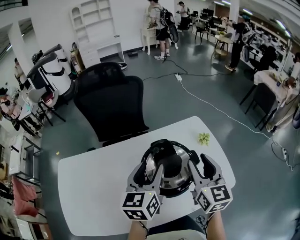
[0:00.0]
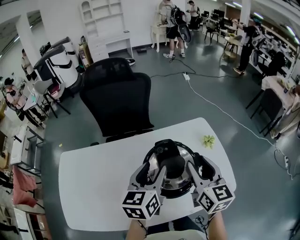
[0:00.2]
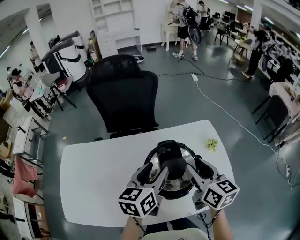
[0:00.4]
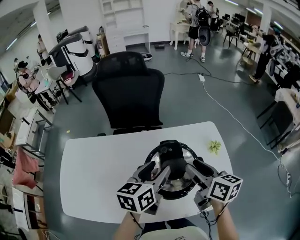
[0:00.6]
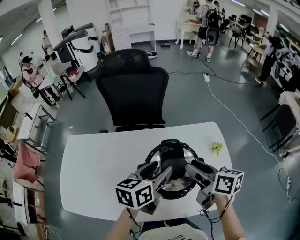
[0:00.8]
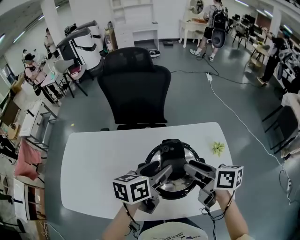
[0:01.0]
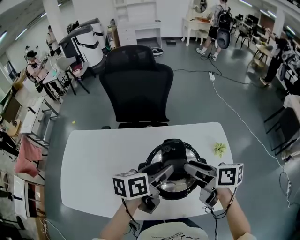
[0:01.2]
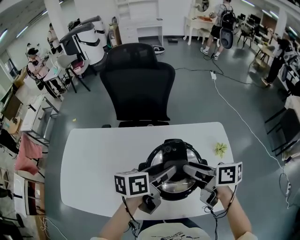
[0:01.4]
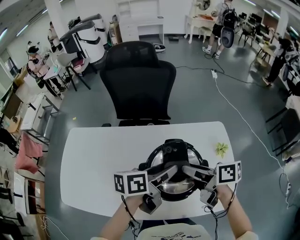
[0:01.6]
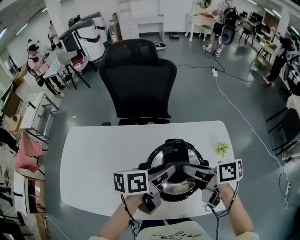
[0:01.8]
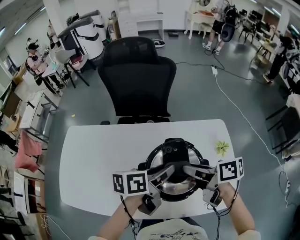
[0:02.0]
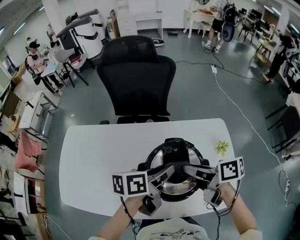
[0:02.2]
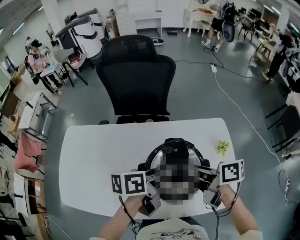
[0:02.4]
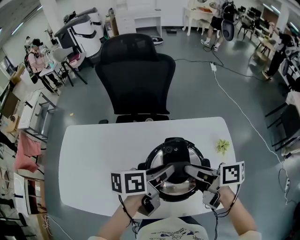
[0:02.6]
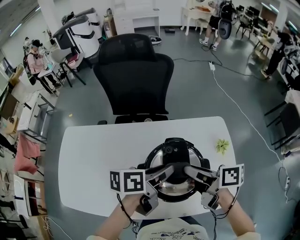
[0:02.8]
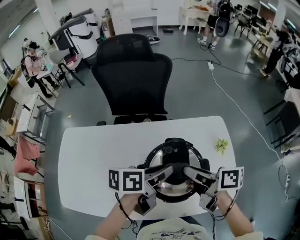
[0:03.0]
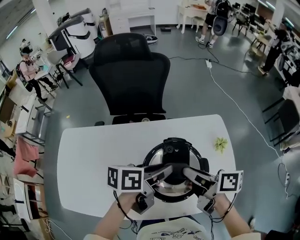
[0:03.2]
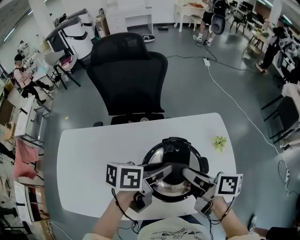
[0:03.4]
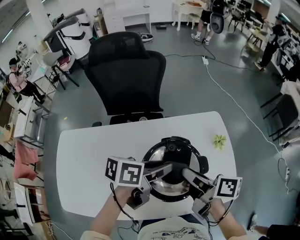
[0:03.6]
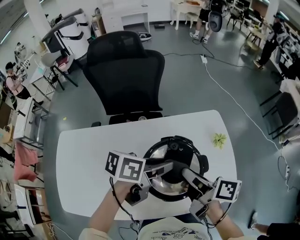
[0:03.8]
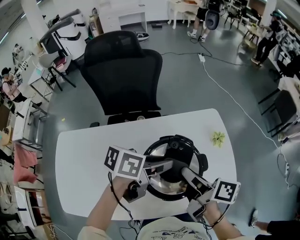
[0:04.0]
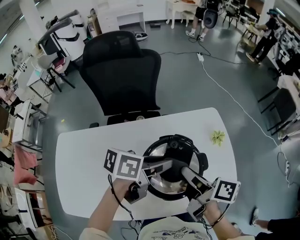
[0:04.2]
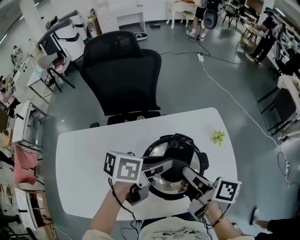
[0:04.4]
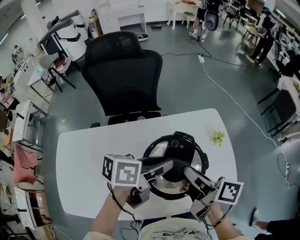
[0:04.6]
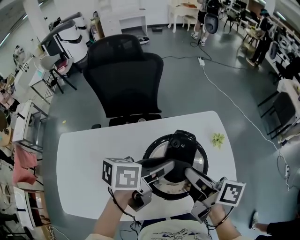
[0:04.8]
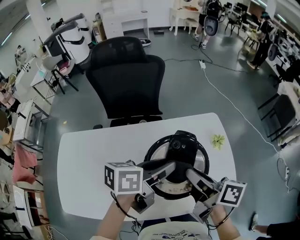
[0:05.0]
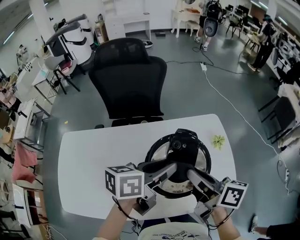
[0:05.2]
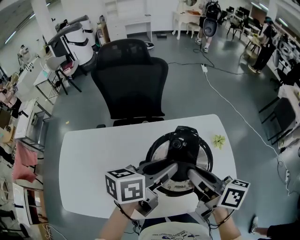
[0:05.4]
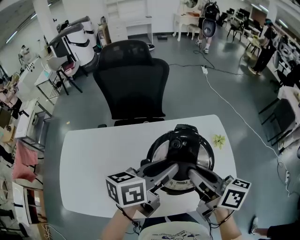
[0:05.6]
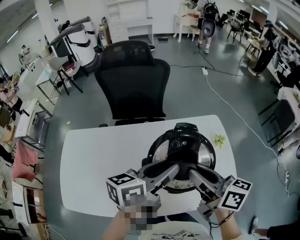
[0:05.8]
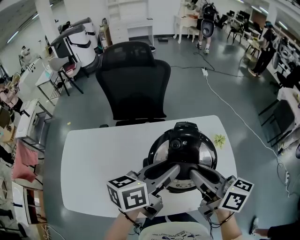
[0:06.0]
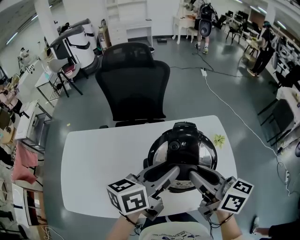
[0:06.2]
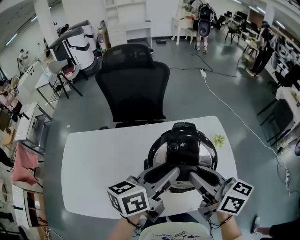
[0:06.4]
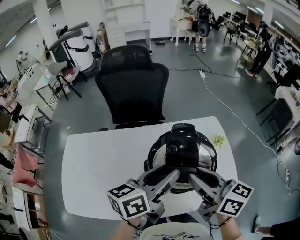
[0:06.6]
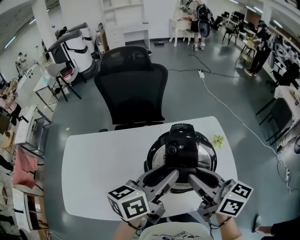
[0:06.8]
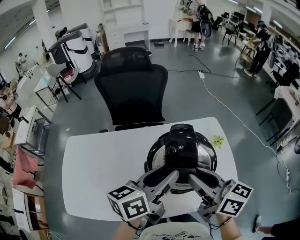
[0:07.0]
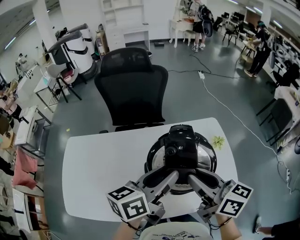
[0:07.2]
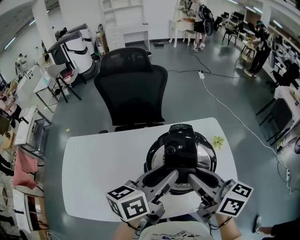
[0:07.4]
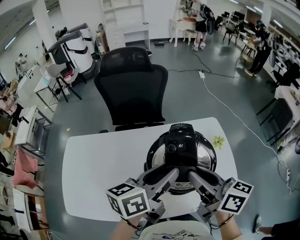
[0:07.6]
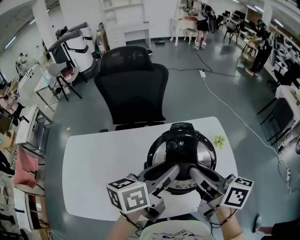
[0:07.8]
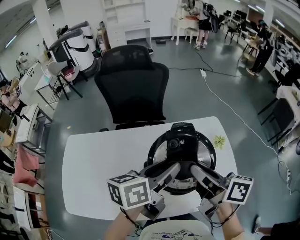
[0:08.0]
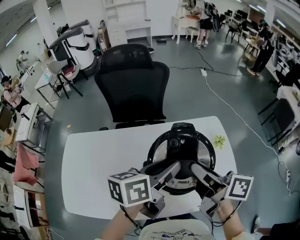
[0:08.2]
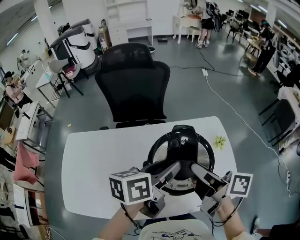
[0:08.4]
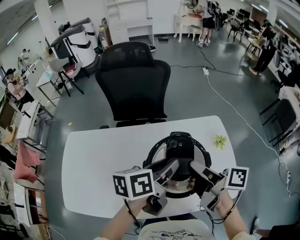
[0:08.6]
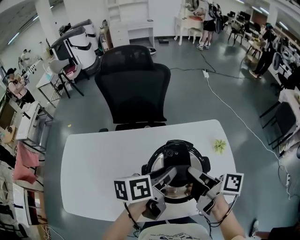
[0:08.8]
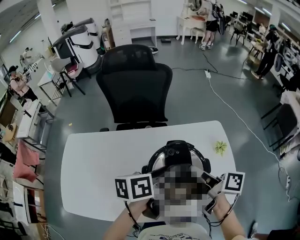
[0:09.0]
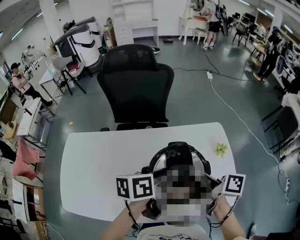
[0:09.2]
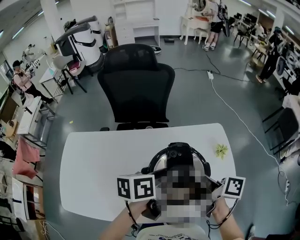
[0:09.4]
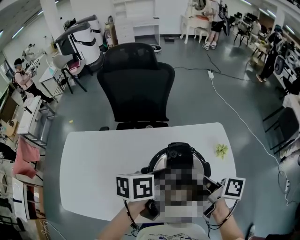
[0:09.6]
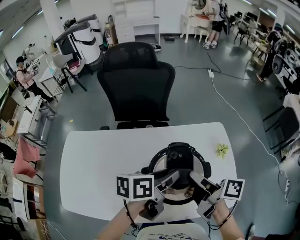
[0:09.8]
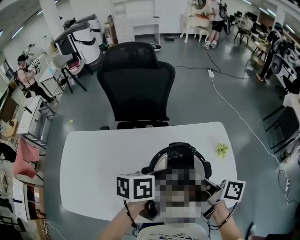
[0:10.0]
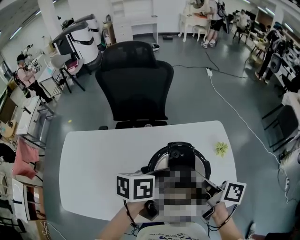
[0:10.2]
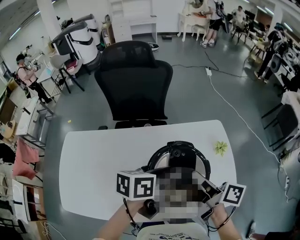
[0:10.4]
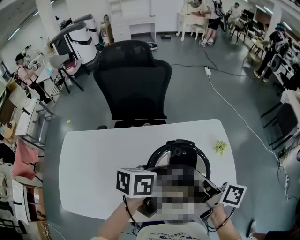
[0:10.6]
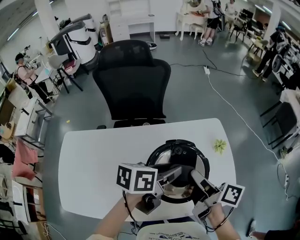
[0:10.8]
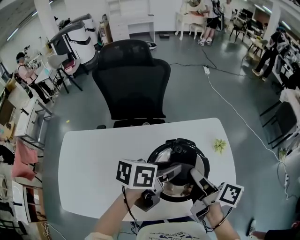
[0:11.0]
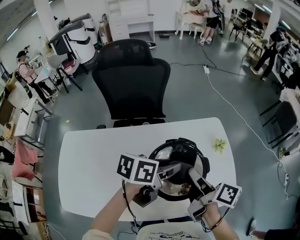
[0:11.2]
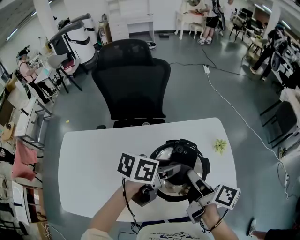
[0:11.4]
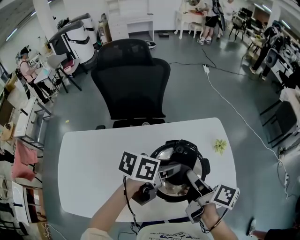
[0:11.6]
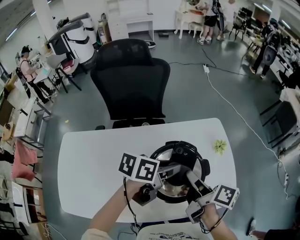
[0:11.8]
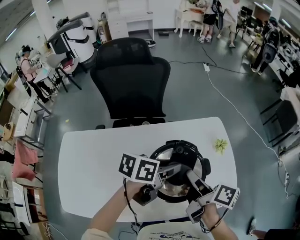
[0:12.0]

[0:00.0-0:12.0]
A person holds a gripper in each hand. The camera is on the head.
0:00.0 to 0:01.6: The left gripper heads downward, covering approximately 5 cm, and changes its angle by some 40 degrees, while the right gripper travels to the left, forward and downward by approximately 10 cm, and swivels some 80 degrees.
0:01.6 to 0:03.0: The left gripper closes.
0:03.0 to 0:04.4: The right gripper swivels approximately 20 degrees.
0:04.4 to 0:06.0: The left gripper is displaced backward and upward by about 15 cm, and swivels about 30 degrees, while the right gripper moves upward and backward, roughly 15 cm, and turns by about 40 degrees.
0:06.0 to 0:07.6: There are only small adjustments of the grippers.
0:07.6 to 0:09.0: The left gripper moves downward and forward, some 10 cm. The right gripper is displaced forward and downward by roughly 10 cm, and turns by roughly 30 degrees.
0:09.0 to 0:10.4: The grippers move only a little.
0:10.4 to 0:12.0: The grippers stay close to where they were, moving slightly.

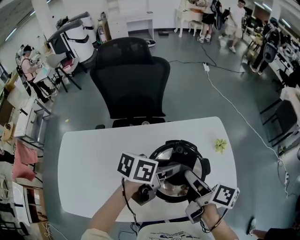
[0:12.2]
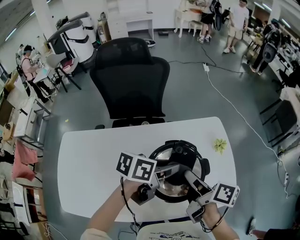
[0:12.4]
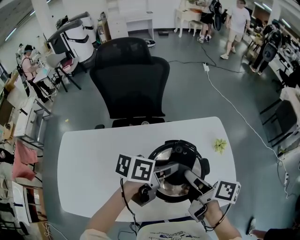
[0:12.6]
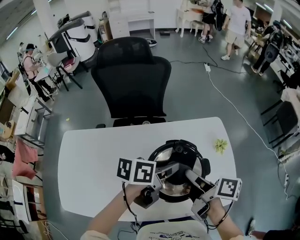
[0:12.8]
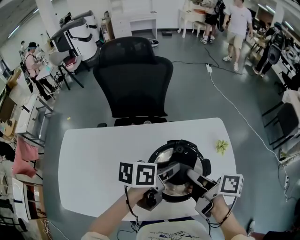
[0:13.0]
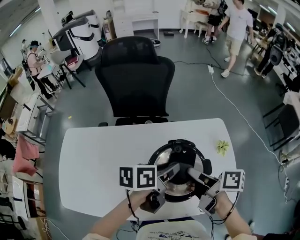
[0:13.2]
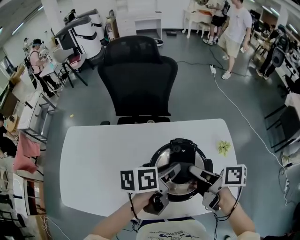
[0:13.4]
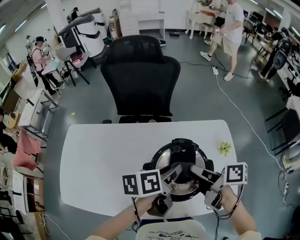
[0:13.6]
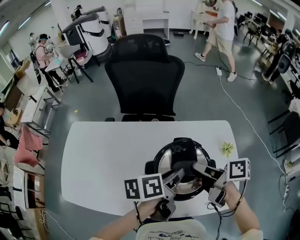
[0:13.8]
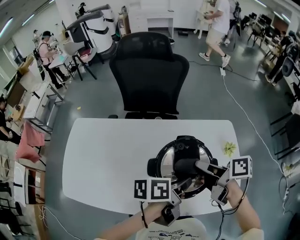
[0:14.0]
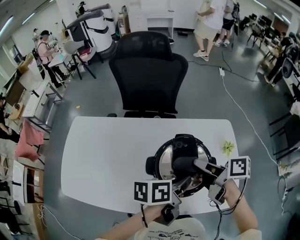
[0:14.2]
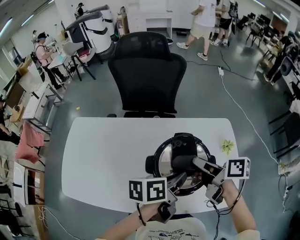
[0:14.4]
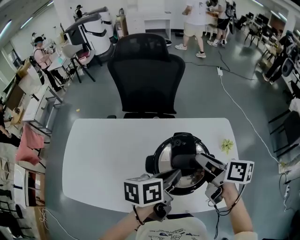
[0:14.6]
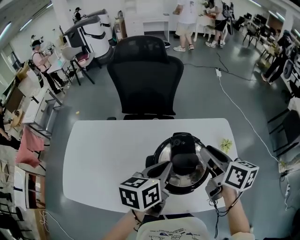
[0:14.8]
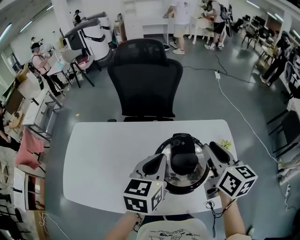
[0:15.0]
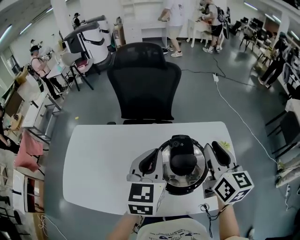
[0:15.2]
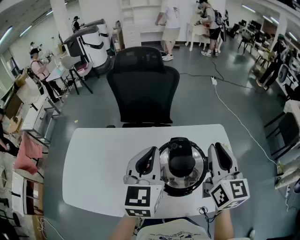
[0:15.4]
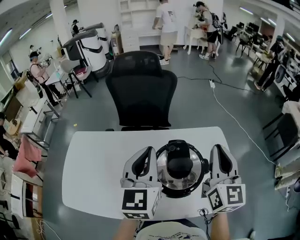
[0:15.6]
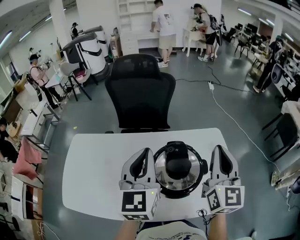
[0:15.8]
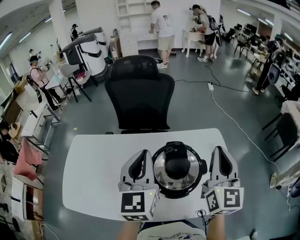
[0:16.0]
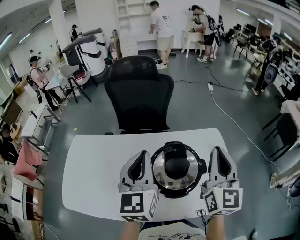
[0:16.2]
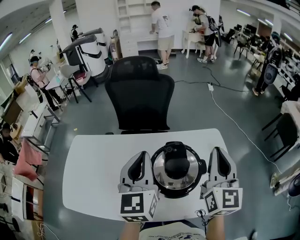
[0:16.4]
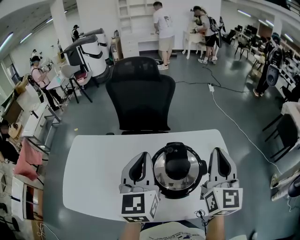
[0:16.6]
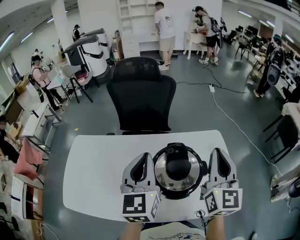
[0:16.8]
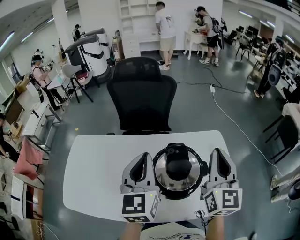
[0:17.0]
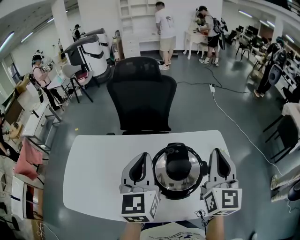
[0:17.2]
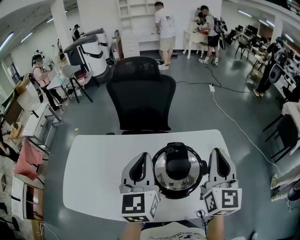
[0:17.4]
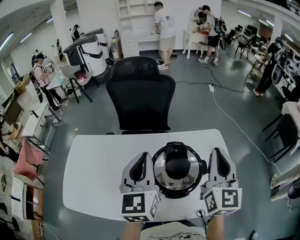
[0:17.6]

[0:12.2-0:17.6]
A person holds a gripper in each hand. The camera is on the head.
0:12.2 to 0:13.6: The left gripper rotates about 30 degrees, while the right gripper changes its angle by approximately 30 degrees.
0:13.6 to 0:15.0: The left gripper moves upward and to the left, roughly 10 cm, swivels approximately 50 degrees, and closes its fingers. Meanwhile the right gripper shifts roughly 10 cm upward, and swivels roughly 50 degrees.
0:15.0 to 0:16.2: The right gripper heads upward and backward, covering about 10 cm, swivels some 40 degrees, and closes, while the left gripper shifts some 10 cm upward, and changes its angle by some 30 degrees.
0:16.2 to 0:17.6: Neither gripper changes place.

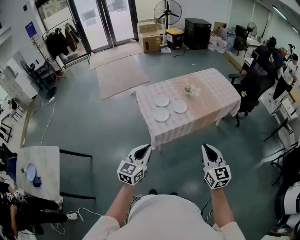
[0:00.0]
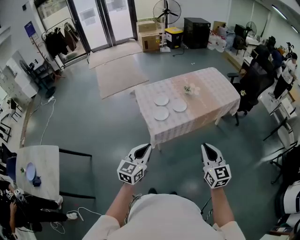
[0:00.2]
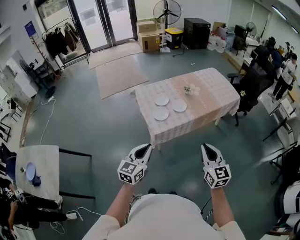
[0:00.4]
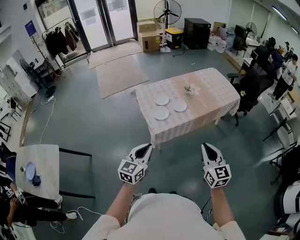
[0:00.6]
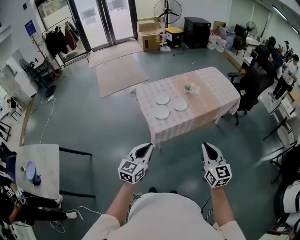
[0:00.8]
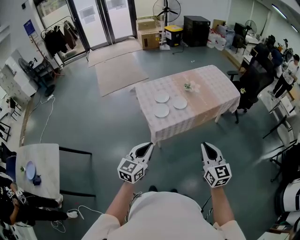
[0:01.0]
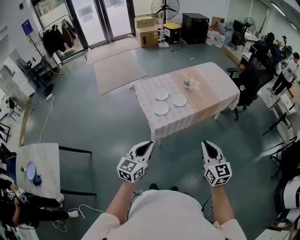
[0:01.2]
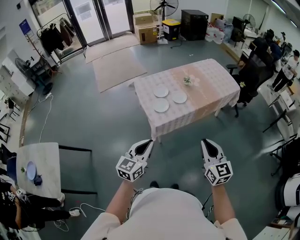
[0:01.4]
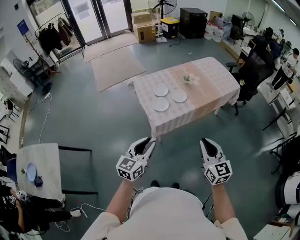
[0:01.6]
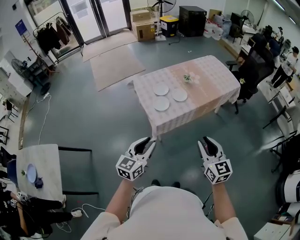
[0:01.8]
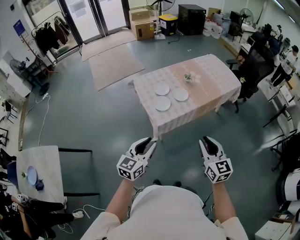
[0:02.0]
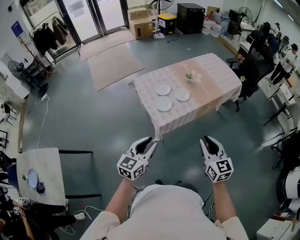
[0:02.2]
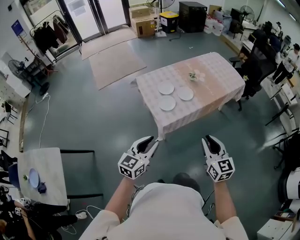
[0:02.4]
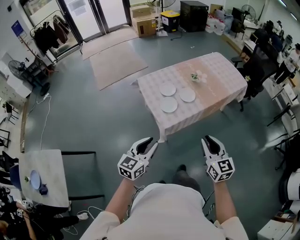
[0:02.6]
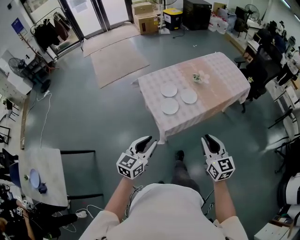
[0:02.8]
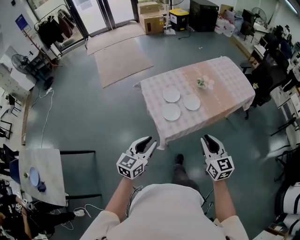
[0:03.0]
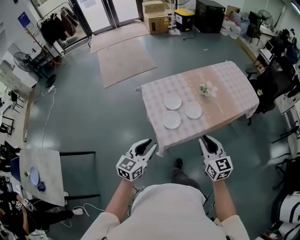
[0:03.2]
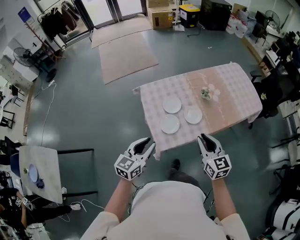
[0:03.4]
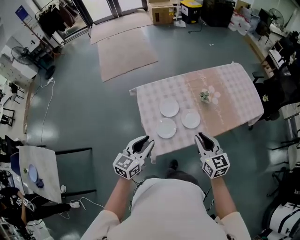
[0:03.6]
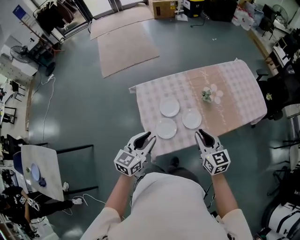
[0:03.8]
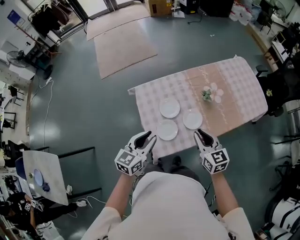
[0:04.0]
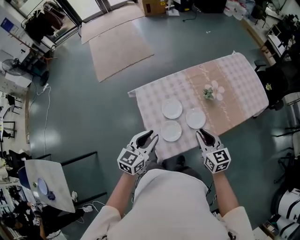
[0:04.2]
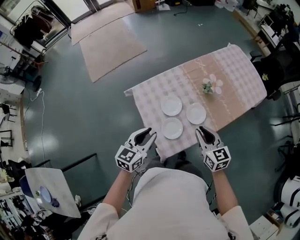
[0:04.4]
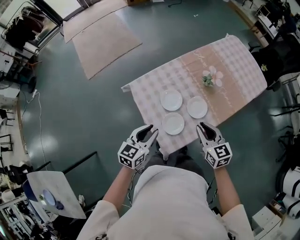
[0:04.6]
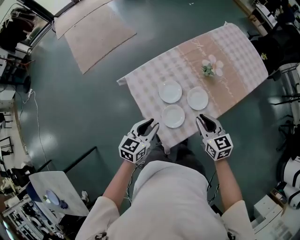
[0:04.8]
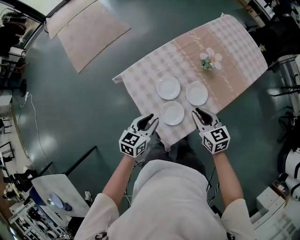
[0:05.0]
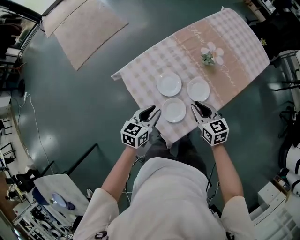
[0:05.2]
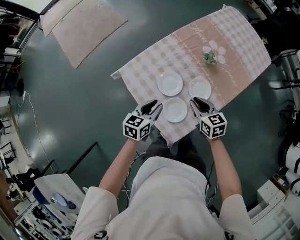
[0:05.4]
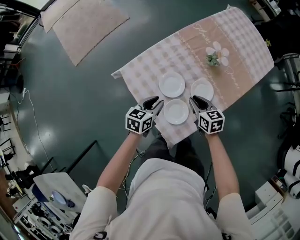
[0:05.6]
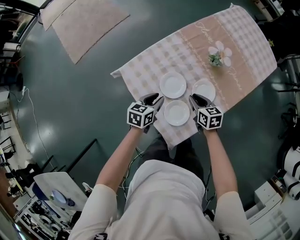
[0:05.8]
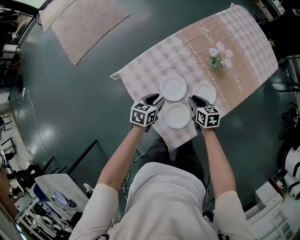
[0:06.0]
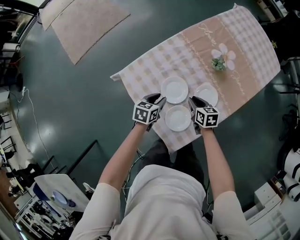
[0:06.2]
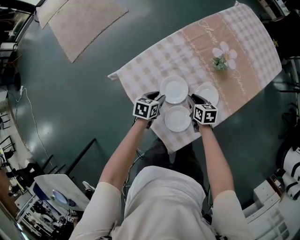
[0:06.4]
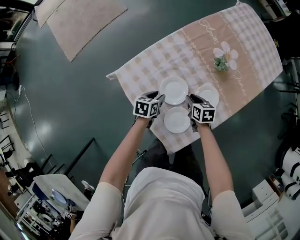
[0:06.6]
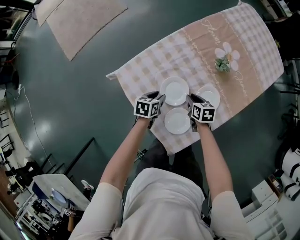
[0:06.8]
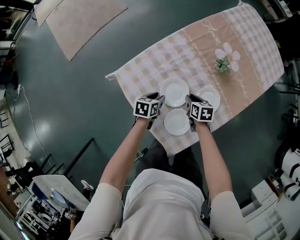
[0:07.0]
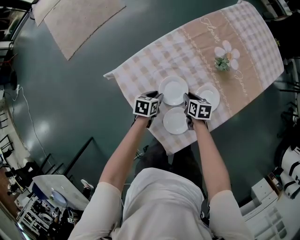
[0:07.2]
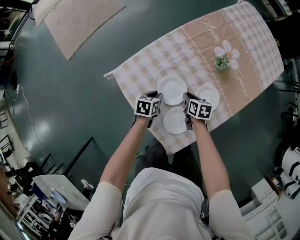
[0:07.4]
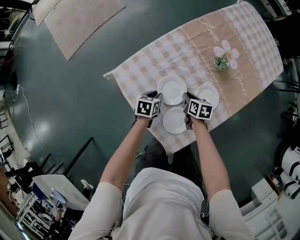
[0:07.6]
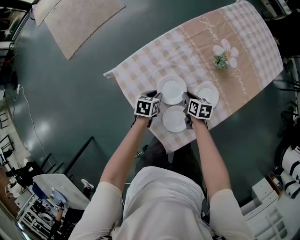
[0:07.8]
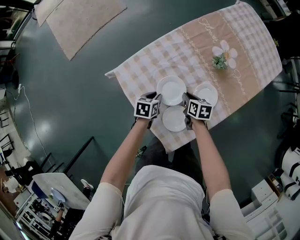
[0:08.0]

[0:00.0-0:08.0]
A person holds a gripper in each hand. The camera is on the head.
0:00.0 to 0:01.6: The left gripper opens up.
0:01.6 to 0:03.2: The two grippers go about 25 cm forward.
0:03.2 to 0:04.8: Both grippers move forward and downward, approximately 25 cm.
0:04.8 to 0:06.4: The grippers both shift downward and forward by some 30 cm. The left gripper changes its angle by about 30 degrees. The right gripper swivels approximately 30 degrees.
0:06.4 to 0:08.0: The grippers make only small movements.
